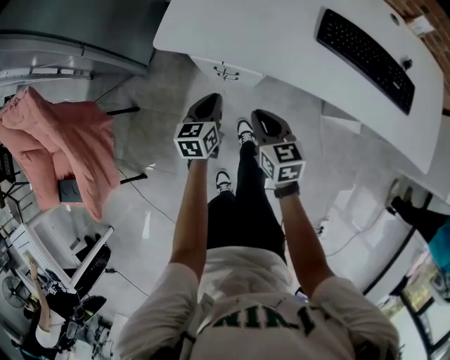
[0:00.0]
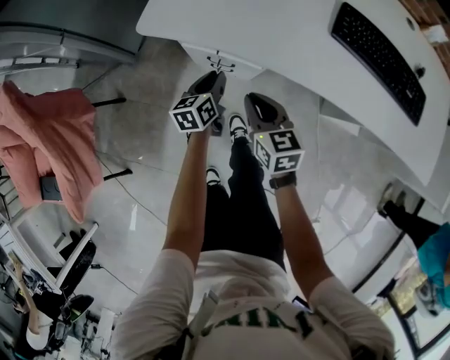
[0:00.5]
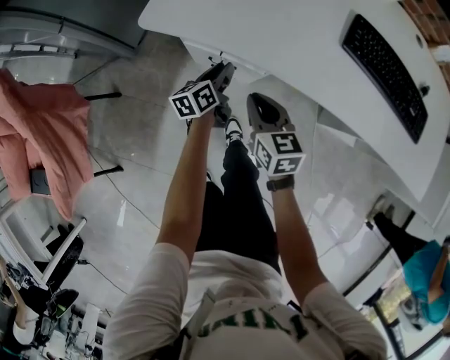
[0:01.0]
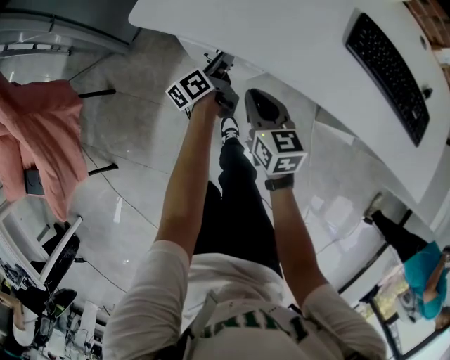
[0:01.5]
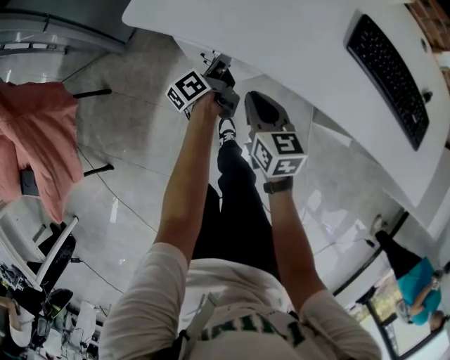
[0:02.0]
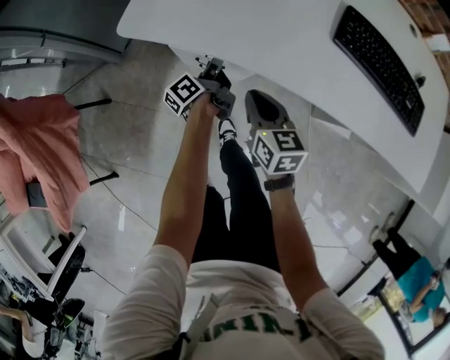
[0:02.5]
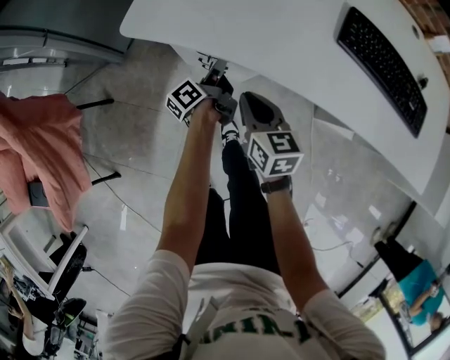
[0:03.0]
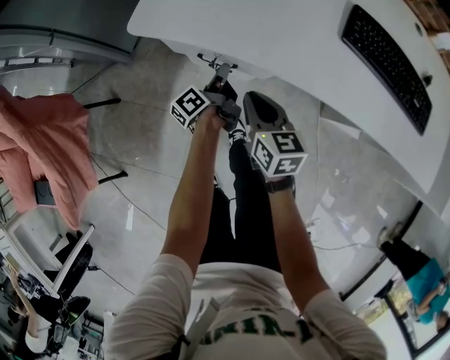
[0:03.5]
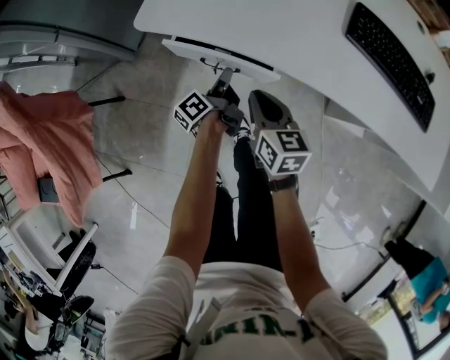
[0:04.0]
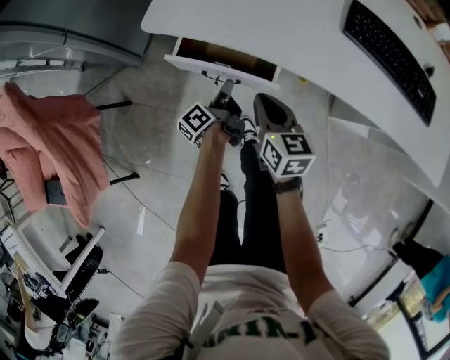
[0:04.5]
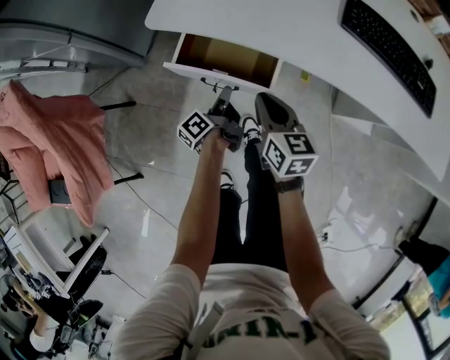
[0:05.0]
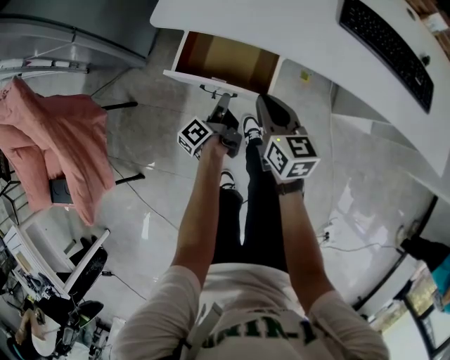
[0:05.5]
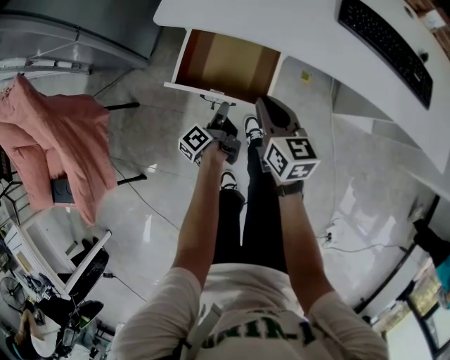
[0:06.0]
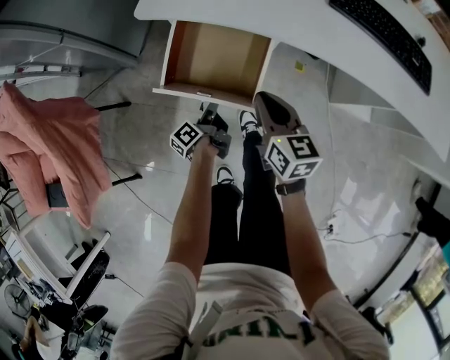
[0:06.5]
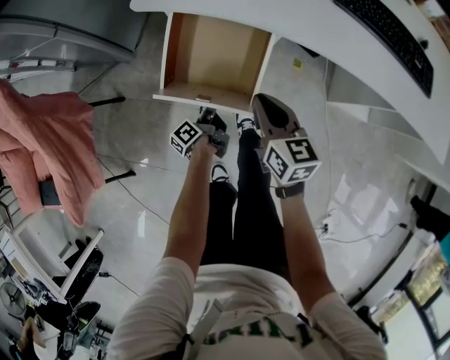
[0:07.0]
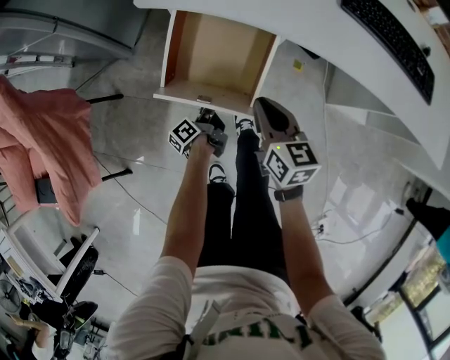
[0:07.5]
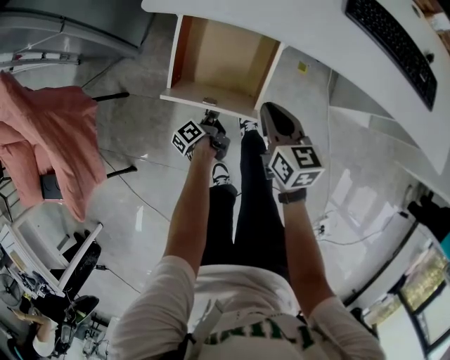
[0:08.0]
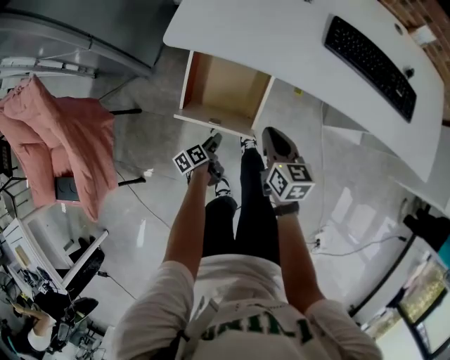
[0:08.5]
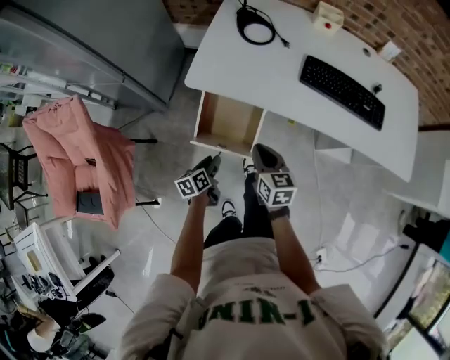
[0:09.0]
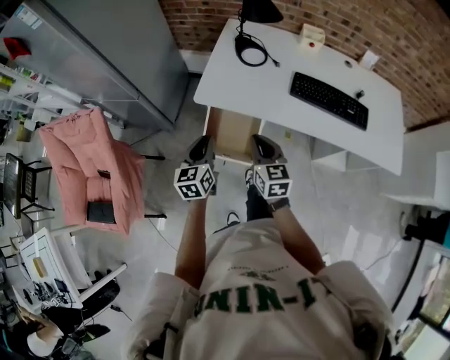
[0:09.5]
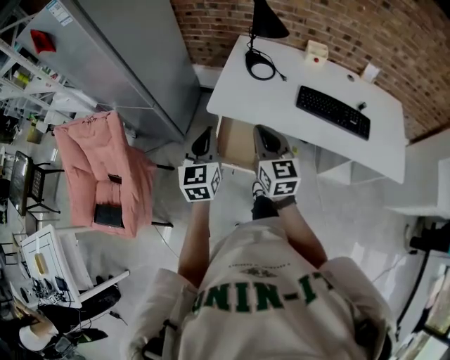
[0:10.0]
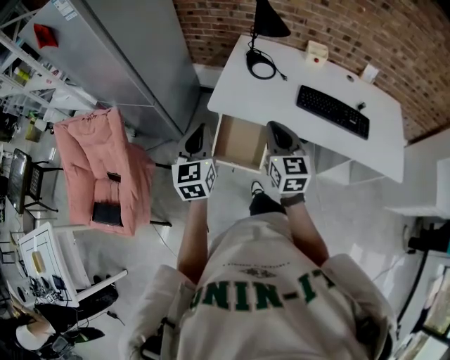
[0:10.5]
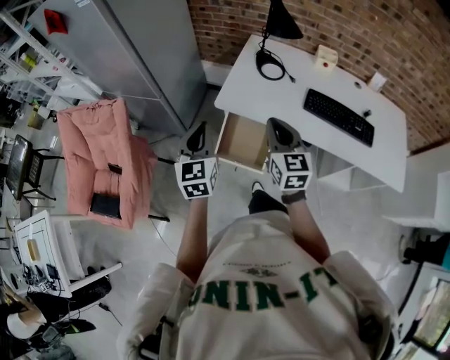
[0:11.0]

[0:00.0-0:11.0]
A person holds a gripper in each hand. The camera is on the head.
0:00.0 to 0:02.0: The left gripper moves forward, downward and to the right, approximately 20 cm, twists some 50 degrees counterclockwise, seen from behind, and opens and closes again. Meanwhile the right gripper goes about 10 cm downward and forward.
0:02.0 to 0:03.5: The grippers make only small movements.
0:03.5 to 0:05.5: The right gripper moves approximately 5 cm; the left gripper shifts some 10 cm backward.
0:05.5 to 0:07.5: The left gripper moves downward and backward, about 10 cm, while the right gripper ends up some 5 cm from where it was.
0:07.5 to 0:09.0: The two grippers go approximately 20 cm upward. The left gripper turns by some 40 degrees, and opens its fingers.
0:09.0 to 0:11.0: The right gripper moves upward, roughly 25 cm, and turns by approximately 30 degrees, while the left gripper heads upward, covering roughly 40 cm, changes its angle by some 60 degrees, and closes its fingers.

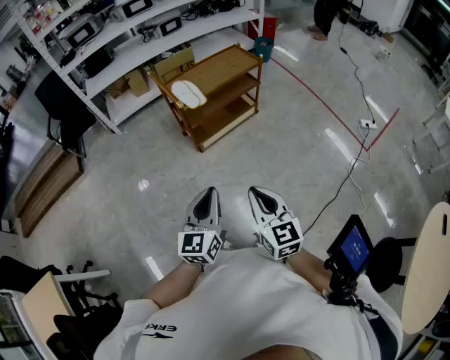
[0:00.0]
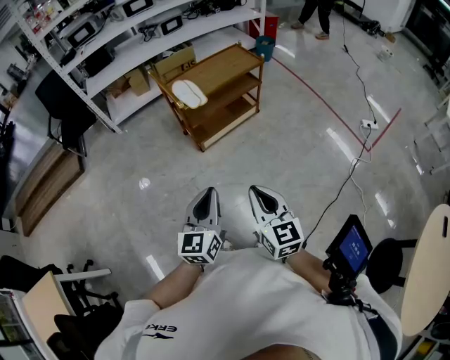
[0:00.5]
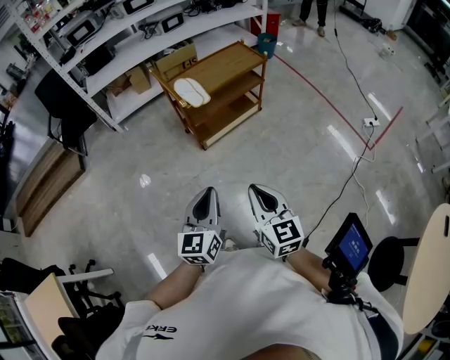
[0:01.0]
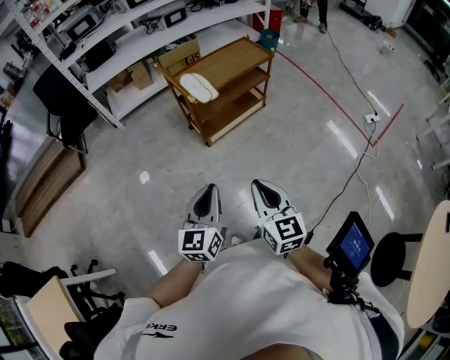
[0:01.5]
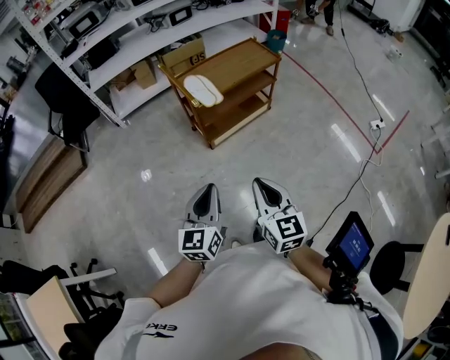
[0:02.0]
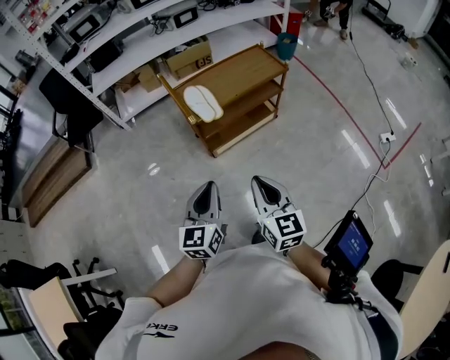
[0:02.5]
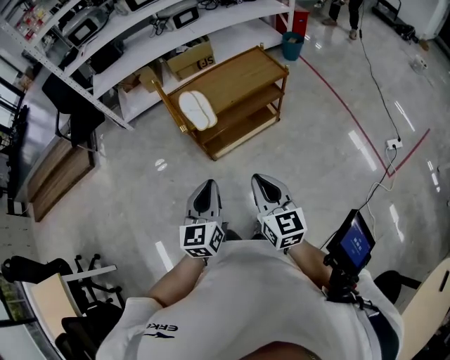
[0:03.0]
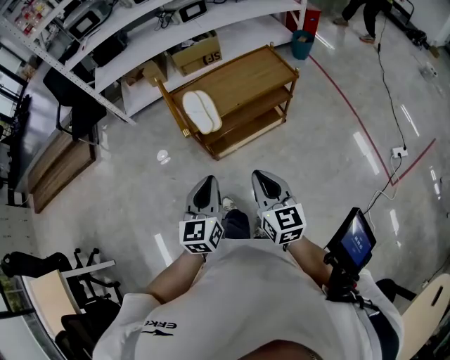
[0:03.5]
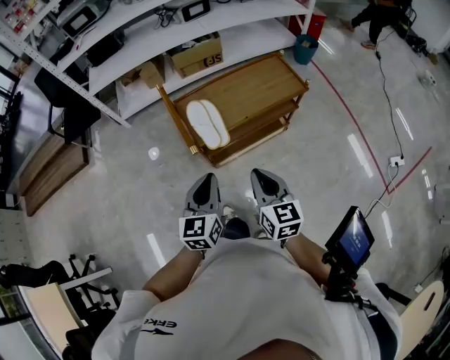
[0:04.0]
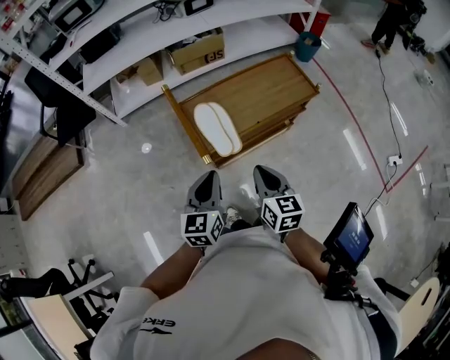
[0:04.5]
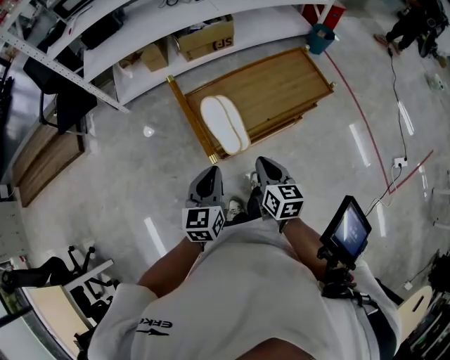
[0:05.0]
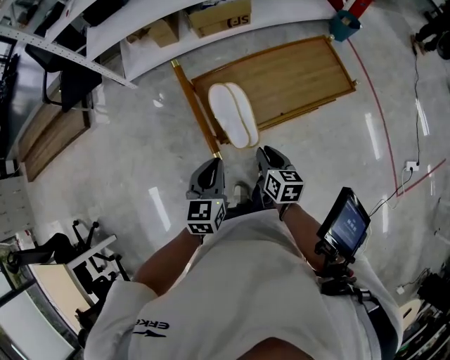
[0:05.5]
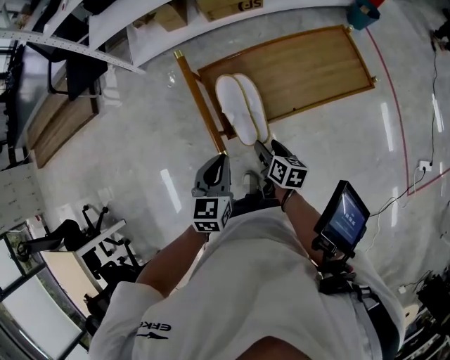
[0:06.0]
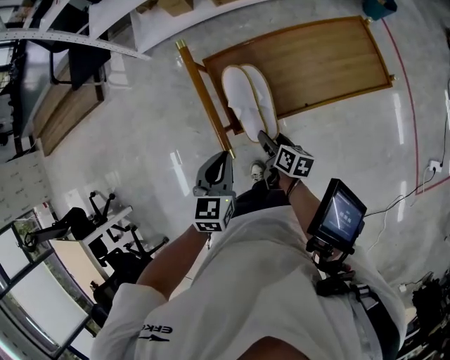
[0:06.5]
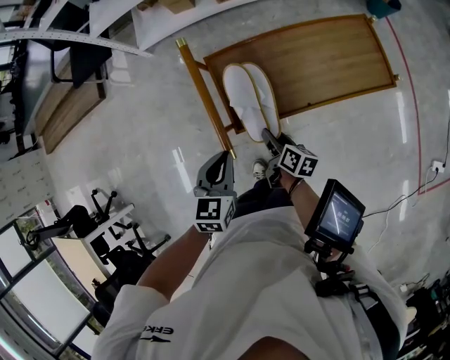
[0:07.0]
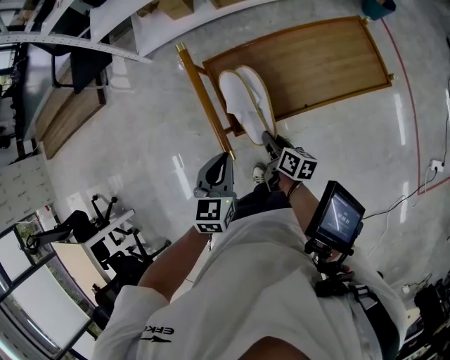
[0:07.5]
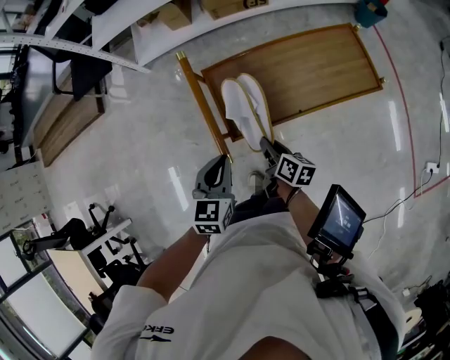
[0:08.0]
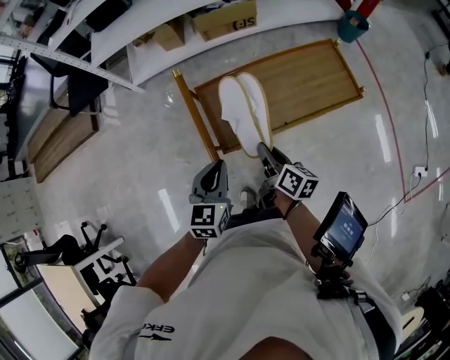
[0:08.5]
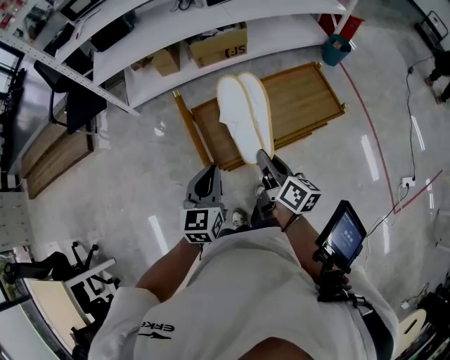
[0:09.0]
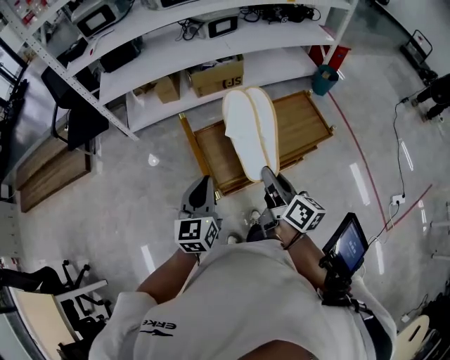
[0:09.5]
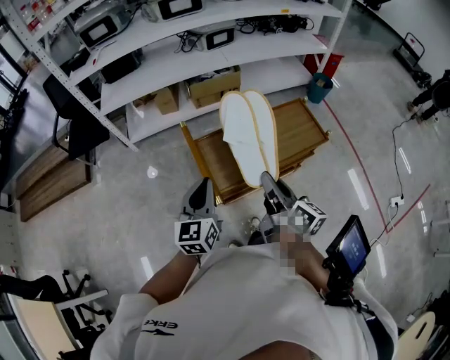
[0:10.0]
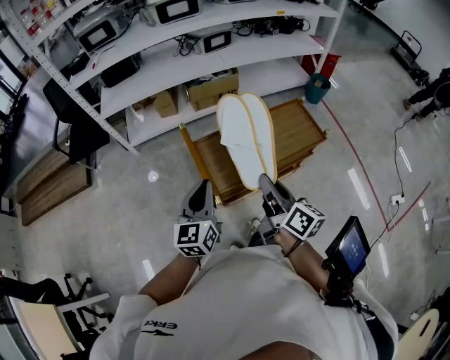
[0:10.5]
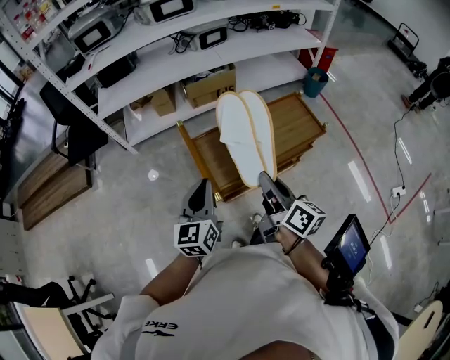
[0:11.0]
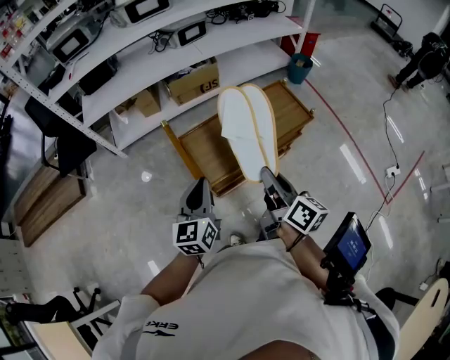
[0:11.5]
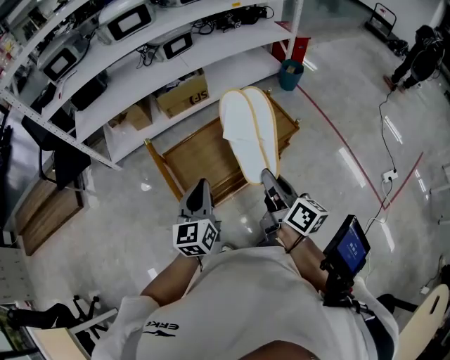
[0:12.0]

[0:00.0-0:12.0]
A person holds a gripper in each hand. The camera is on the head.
0:00.0 to 0:02.0: Both grippers travel together forward and to the left, roughly 10 cm.
0:02.0 to 0:04.0: The grippers both shift forward by approximately 35 cm.
0:04.0 to 0:06.0: The right gripper shifts approximately 30 cm downward and forward, changes its angle by approximately 40 degrees, and opens its fingers; the left gripper moves forward and downward, some 20 cm.
0:06.0 to 0:08.0: The right gripper closes its fingers.
0:08.0 to 0:10.0: The right gripper travels upward by roughly 30 cm, and rotates some 30 degrees. Meanwhile the left gripper moves upward, approximately 15 cm, and swivels some 30 degrees.
0:10.0 to 0:12.0: The grippers both shift to the right by about 10 cm.

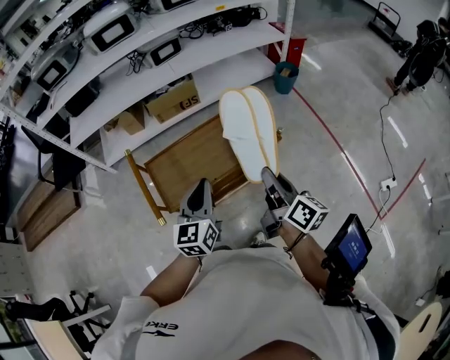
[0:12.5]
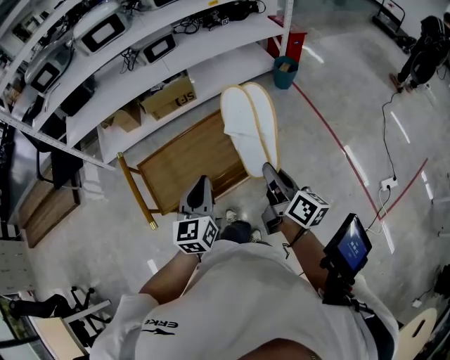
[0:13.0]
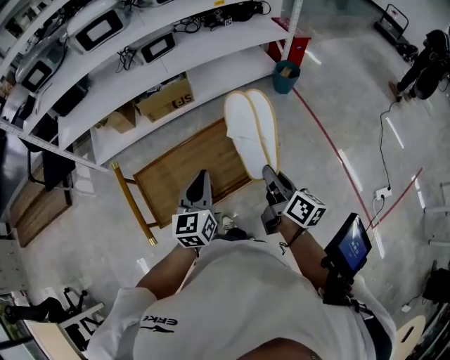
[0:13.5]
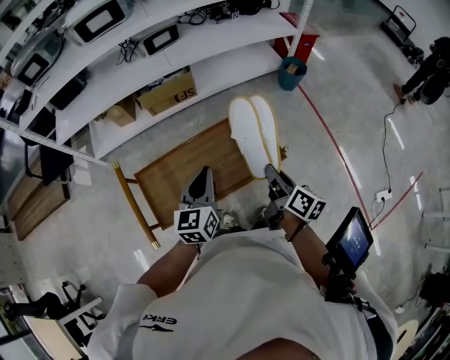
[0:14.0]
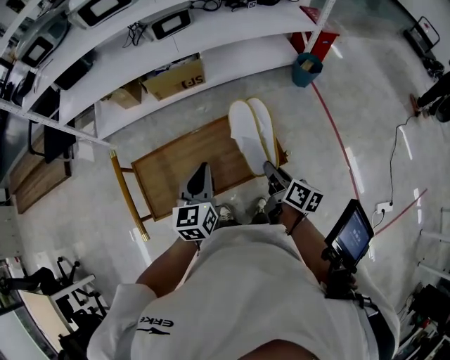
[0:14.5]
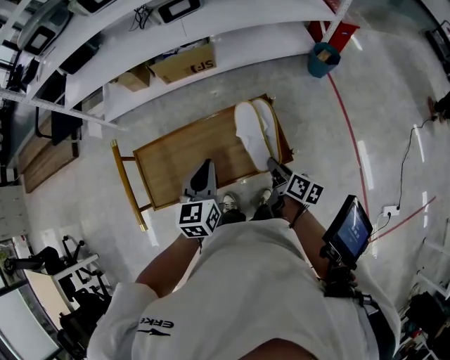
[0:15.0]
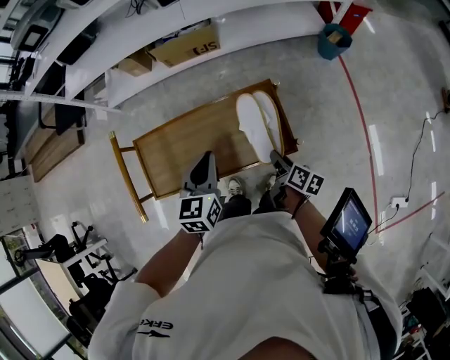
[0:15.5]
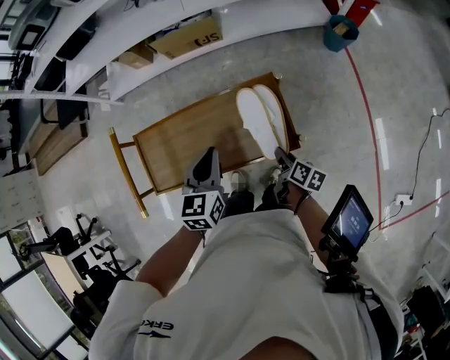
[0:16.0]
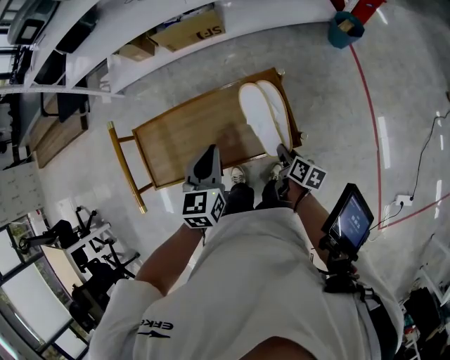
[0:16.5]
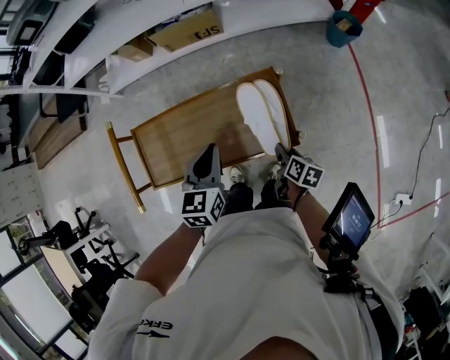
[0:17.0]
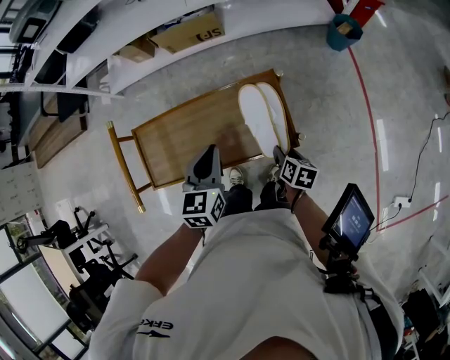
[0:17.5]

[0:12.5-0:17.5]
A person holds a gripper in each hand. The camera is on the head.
0:12.5 to 0:15.0: Both grippers move forward, downward and to the right, some 25 cm. The right gripper turns by some 30 degrees.
0:15.0 to 0:17.5: The right gripper moves downward, about 10 cm, changes its angle by approximately 20 degrees, and opens up.
